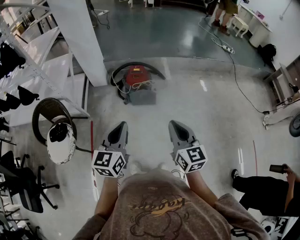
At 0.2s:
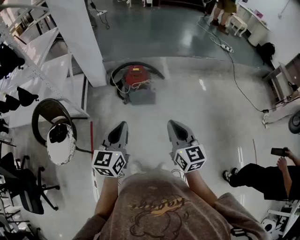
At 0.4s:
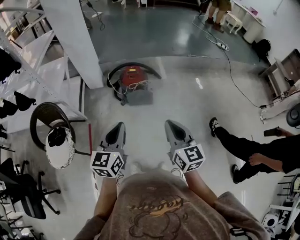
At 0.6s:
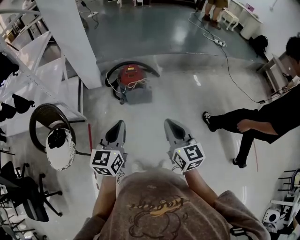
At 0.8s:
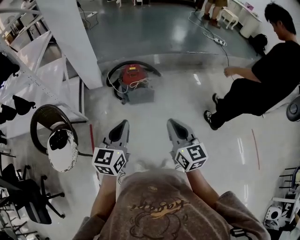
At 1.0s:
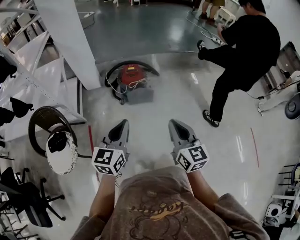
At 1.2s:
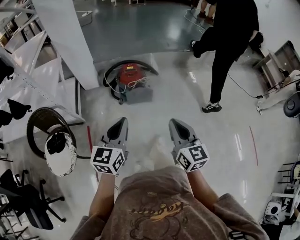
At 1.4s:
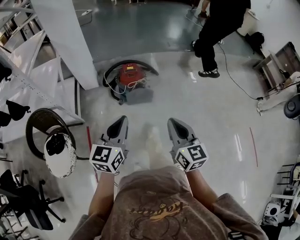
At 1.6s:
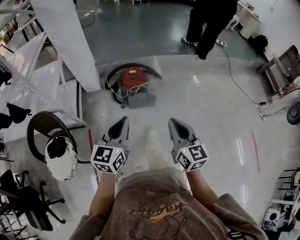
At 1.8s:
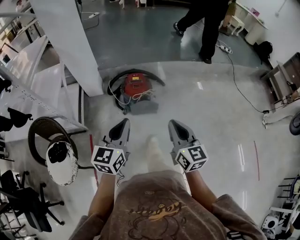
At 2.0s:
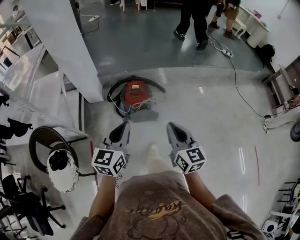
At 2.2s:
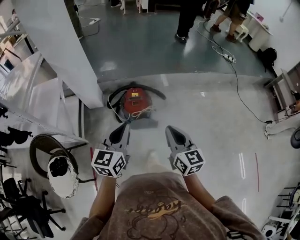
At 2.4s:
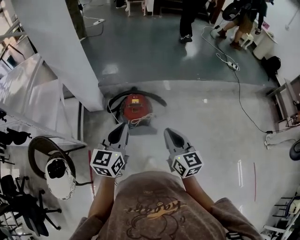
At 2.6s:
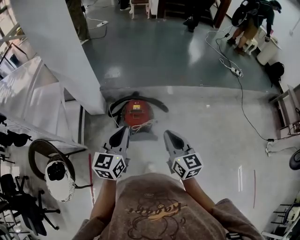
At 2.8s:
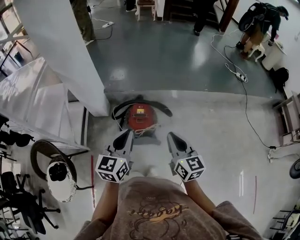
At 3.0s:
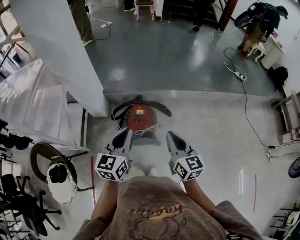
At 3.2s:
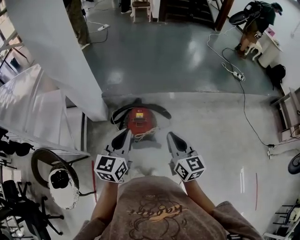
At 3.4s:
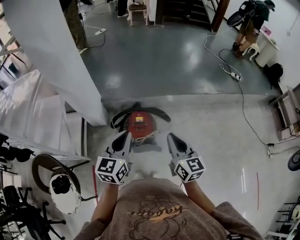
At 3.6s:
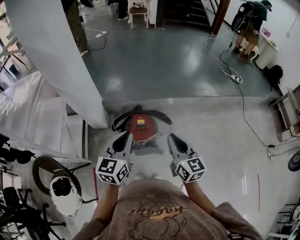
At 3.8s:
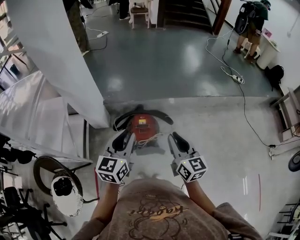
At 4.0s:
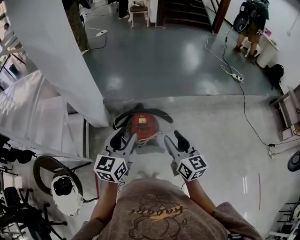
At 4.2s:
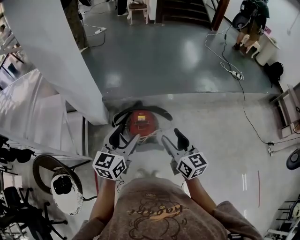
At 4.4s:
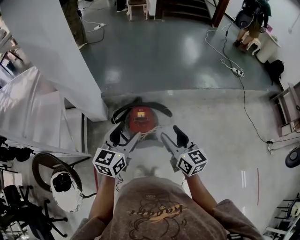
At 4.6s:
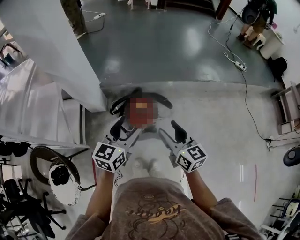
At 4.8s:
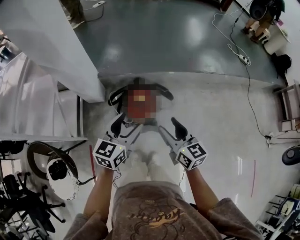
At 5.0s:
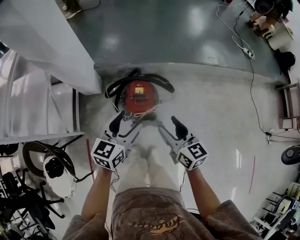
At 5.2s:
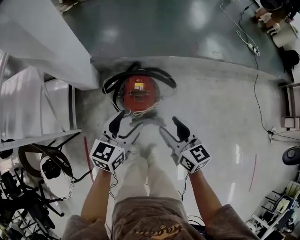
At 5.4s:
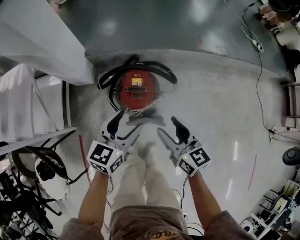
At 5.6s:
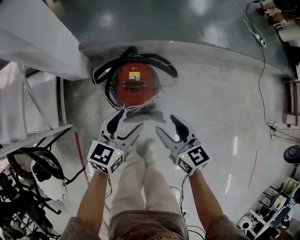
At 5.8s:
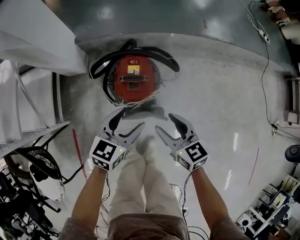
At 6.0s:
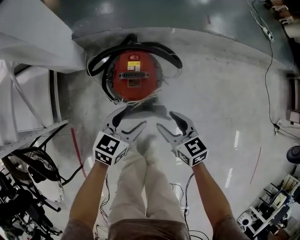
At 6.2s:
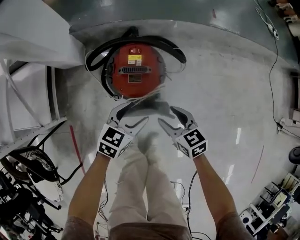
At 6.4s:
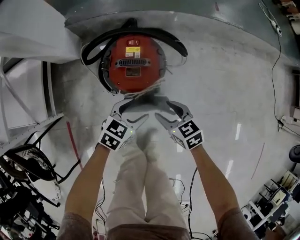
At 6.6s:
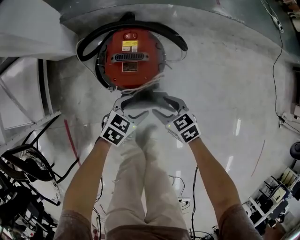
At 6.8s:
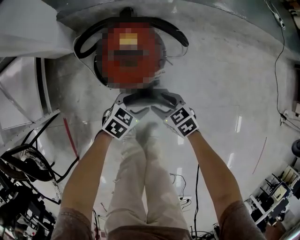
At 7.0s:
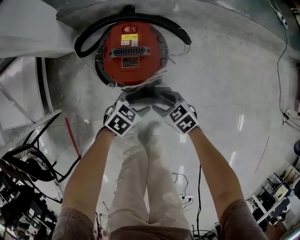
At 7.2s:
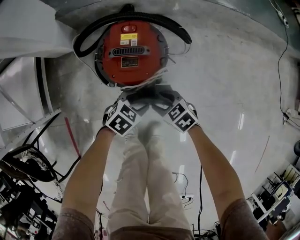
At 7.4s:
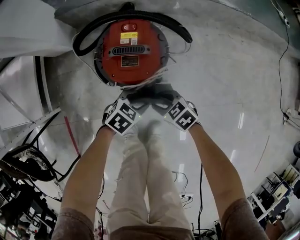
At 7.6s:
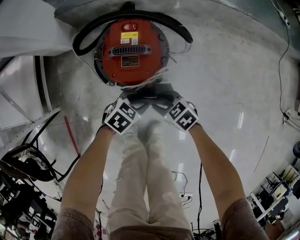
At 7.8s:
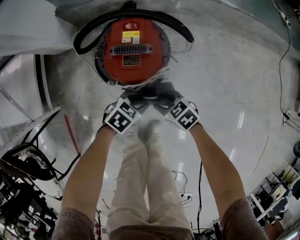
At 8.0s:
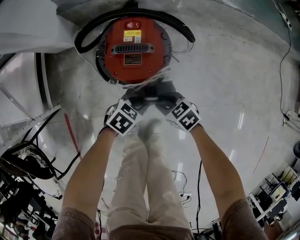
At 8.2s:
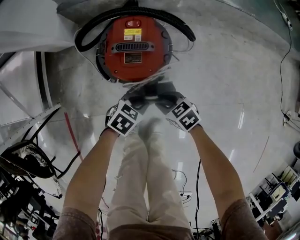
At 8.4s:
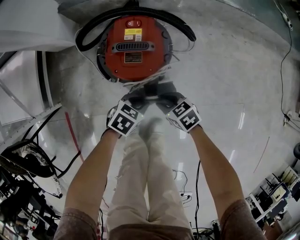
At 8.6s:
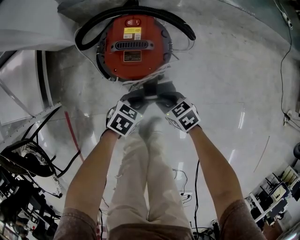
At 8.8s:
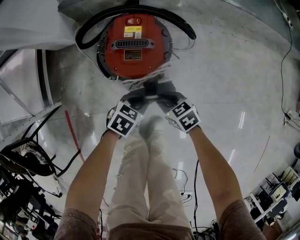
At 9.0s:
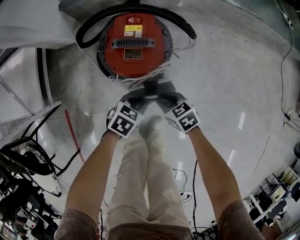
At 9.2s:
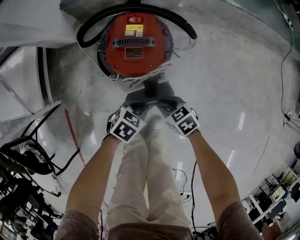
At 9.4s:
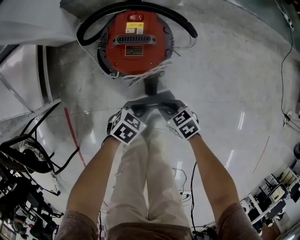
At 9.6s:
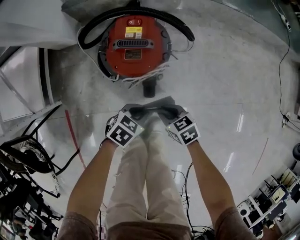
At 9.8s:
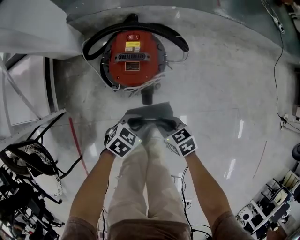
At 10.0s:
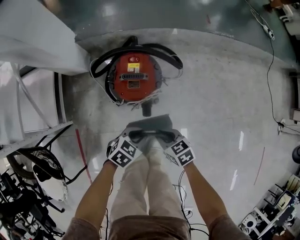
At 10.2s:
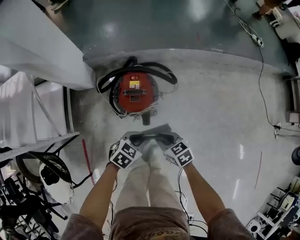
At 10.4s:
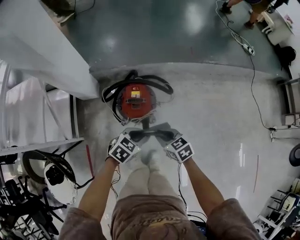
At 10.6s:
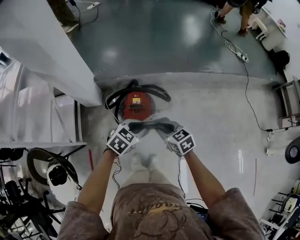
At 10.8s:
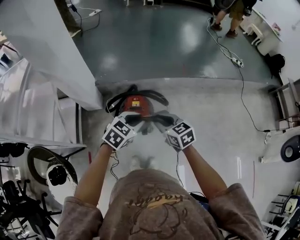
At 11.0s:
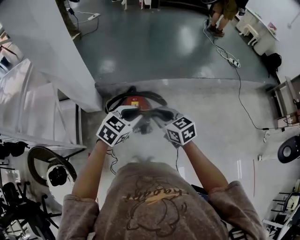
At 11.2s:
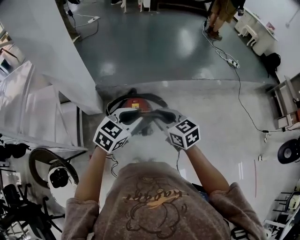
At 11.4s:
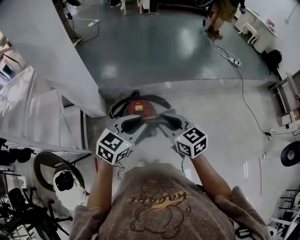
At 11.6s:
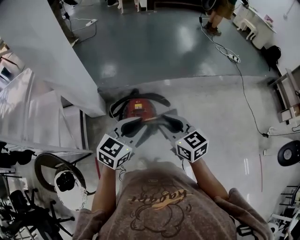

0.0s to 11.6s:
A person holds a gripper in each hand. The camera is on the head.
0.0s to 1.4s: The right gripper moves to the left, some 5 cm. Meanwhile the left gripper goes approximately 5 cm forward.
1.4s to 2.8s: The two grippers go about 30 cm forward.
2.8s to 4.4s: The left gripper heads forward, covering some 5 cm, and opens its fingers. Meanwhile the right gripper ends up approximately 5 cm from where it was, and opens.
4.4s to 5.8s: The grippers both shift downward by some 30 cm. The right gripper rotates about 20 degrees. The left gripper changes its angle by about 20 degrees.
5.8s to 7.2s: Both grippers travel together downward, about 25 cm. The left gripper rotates about 40 degrees. The right gripper turns by some 30 degrees.
7.2s to 8.8s: The left gripper closes. The right gripper closes up.
8.8s to 10.2s: Both grippers move upward, about 20 cm.
10.2s to 11.6s: Both grippers travel together upward, approximately 35 cm. The left gripper tilts its fingers some 30 degrees upward; the right gripper swivels some 30 degrees.

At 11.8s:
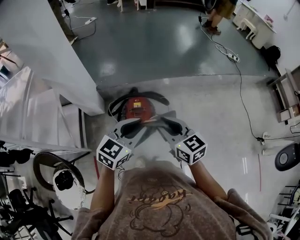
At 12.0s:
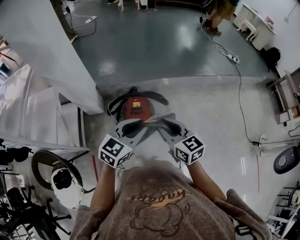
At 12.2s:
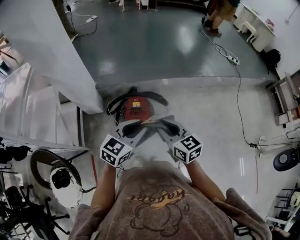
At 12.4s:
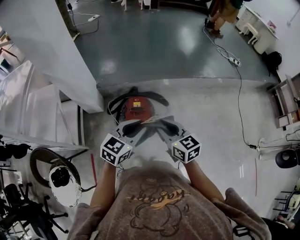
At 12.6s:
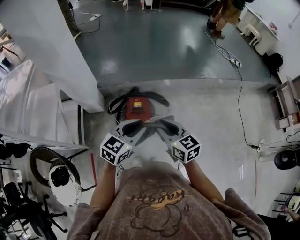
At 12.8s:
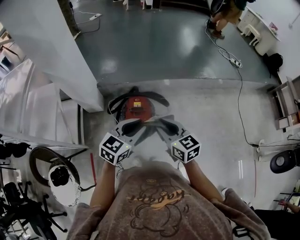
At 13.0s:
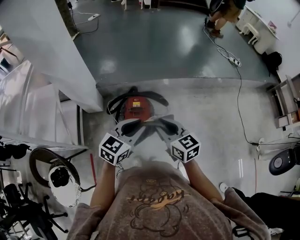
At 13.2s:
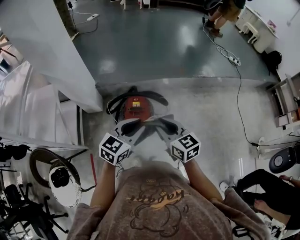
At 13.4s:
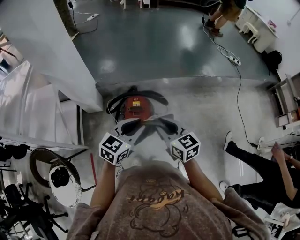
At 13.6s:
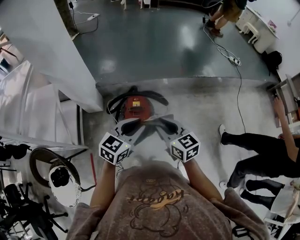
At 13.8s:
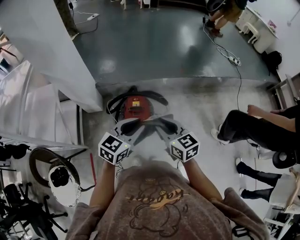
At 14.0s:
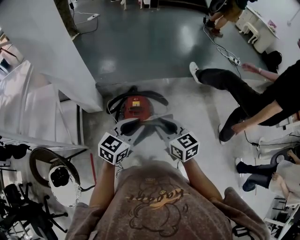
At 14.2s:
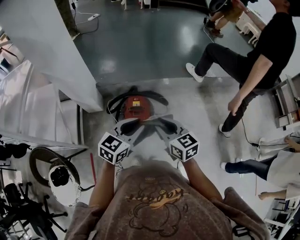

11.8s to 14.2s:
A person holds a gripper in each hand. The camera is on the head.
11.8s to 13.0s: The grippers stay close to where they were, moving slightly.
13.0s to 14.2s: Both grippers stay about where they are.

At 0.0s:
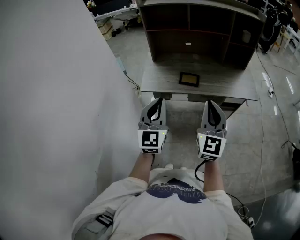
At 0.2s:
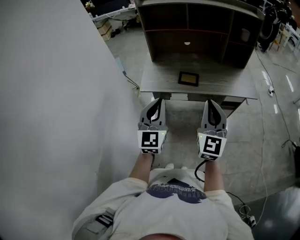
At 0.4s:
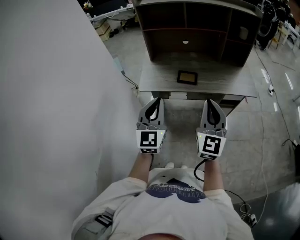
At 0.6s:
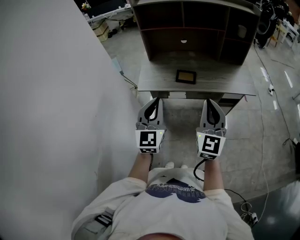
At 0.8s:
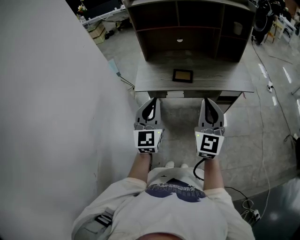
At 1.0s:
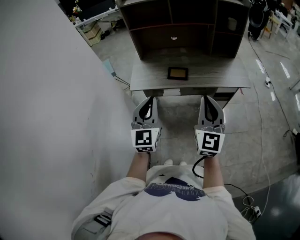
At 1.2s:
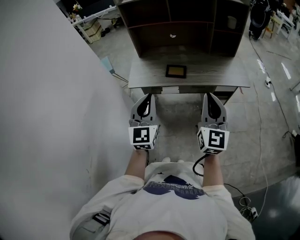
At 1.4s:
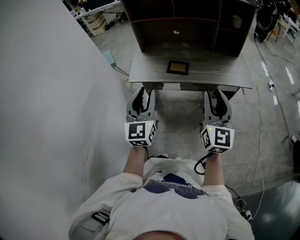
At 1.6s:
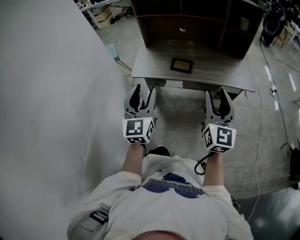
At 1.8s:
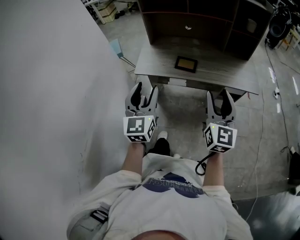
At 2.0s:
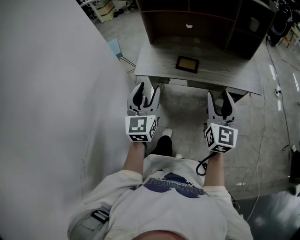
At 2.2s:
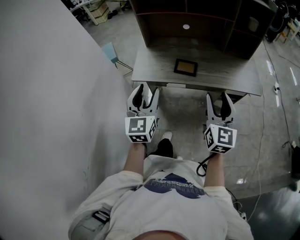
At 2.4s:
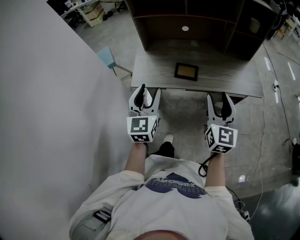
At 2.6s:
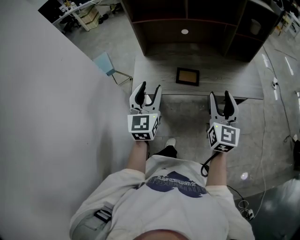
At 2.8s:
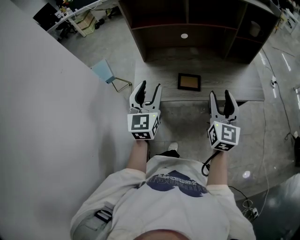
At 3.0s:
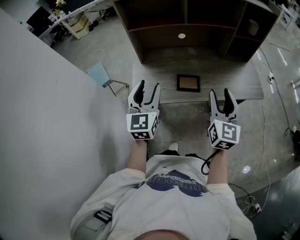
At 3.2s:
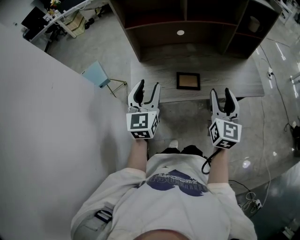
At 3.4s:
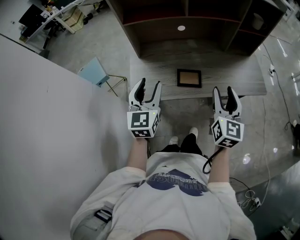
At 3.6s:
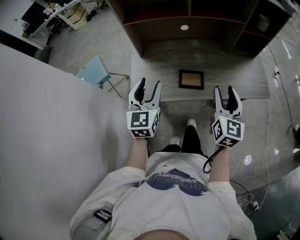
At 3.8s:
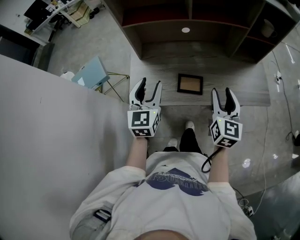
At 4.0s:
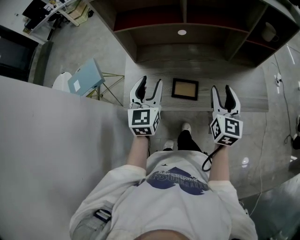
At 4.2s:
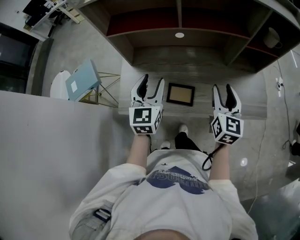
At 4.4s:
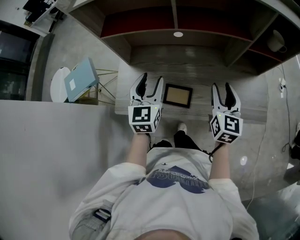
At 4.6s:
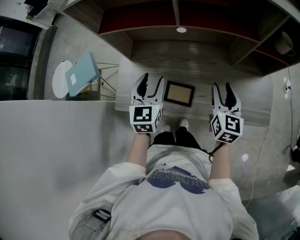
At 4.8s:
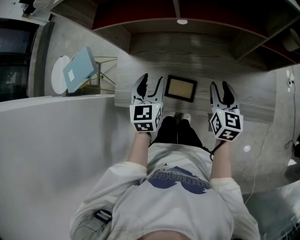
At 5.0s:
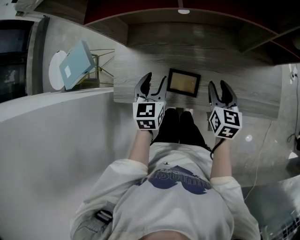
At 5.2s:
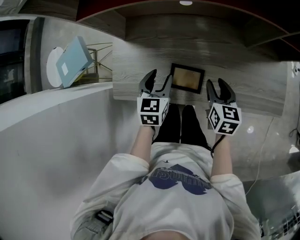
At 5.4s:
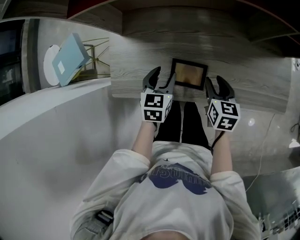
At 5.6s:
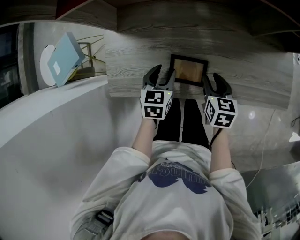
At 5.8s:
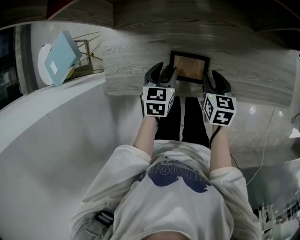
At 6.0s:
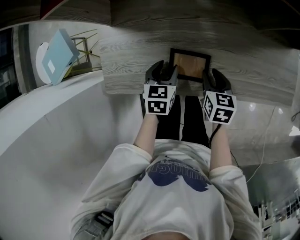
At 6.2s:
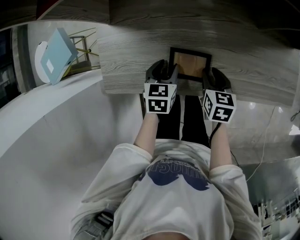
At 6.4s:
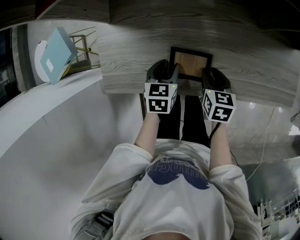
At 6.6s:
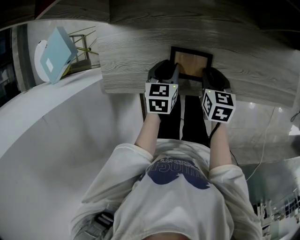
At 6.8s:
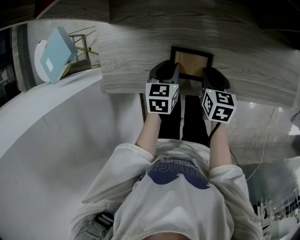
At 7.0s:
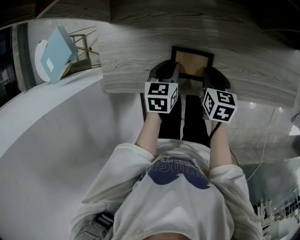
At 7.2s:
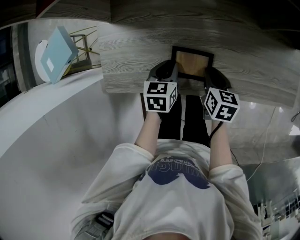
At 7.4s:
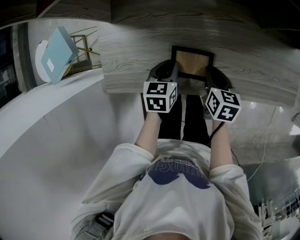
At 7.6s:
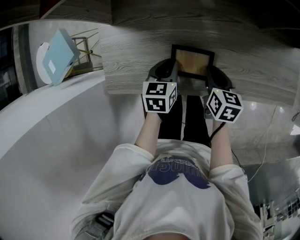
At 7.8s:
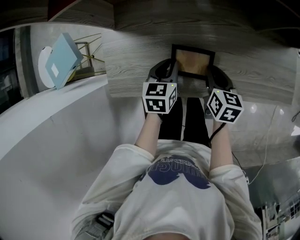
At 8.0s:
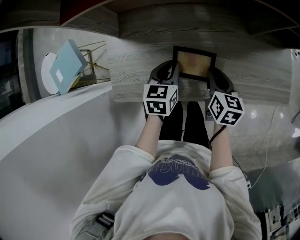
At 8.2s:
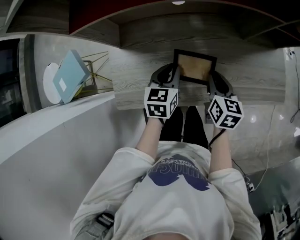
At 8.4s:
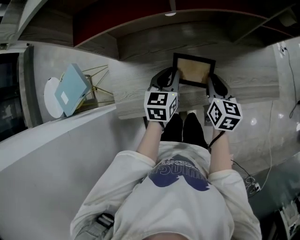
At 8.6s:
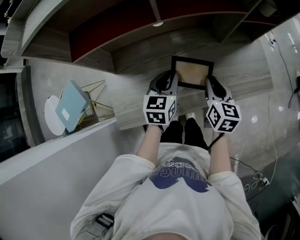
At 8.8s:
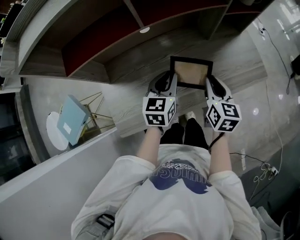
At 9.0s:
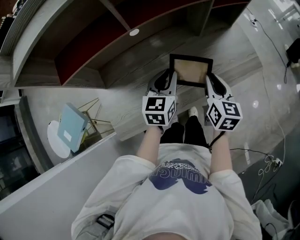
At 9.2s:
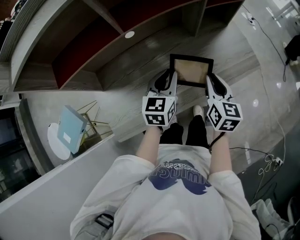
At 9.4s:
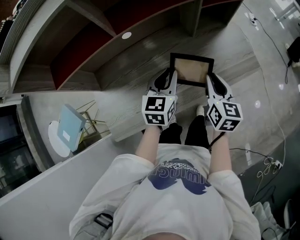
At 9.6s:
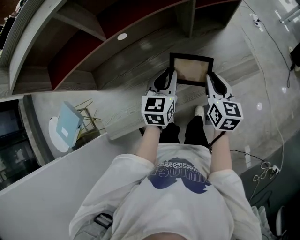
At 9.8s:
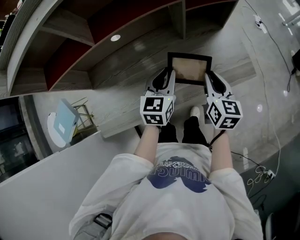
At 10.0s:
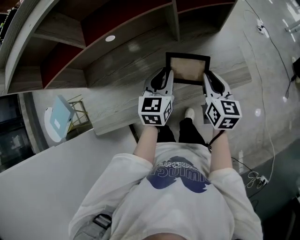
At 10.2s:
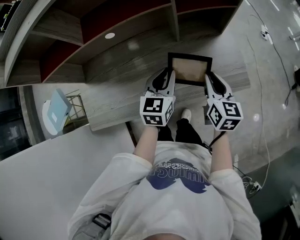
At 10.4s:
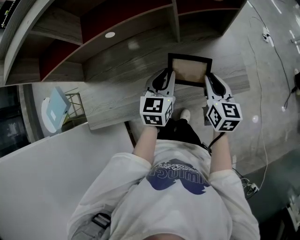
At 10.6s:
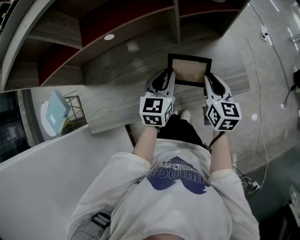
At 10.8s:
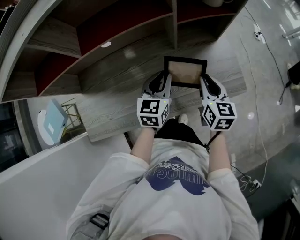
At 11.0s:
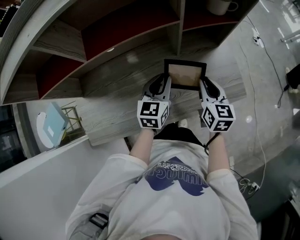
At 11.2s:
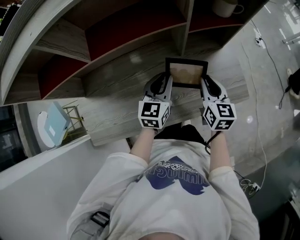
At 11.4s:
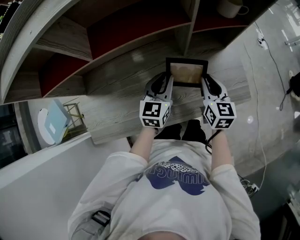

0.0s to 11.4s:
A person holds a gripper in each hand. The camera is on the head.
0.0s to 1.4s: The right gripper goes roughly 10 cm to the right, and opens up. Meanwhile the left gripper opens.
1.4s to 2.8s: The grippers both shift forward by roughly 25 cm. The left gripper opens. The right gripper opens its fingers.
2.8s to 4.2s: The two grippers go approximately 20 cm forward.
4.2s to 5.6s: The grippers both shift downward by roughly 25 cm. The right gripper tips its fingers downward by roughly 30 degrees; the left gripper angles its fingers downward, by some 30 degrees.
5.6s to 7.2s: The left gripper changes place by approximately 5 cm, and closes, while the right gripper changes place by roughly 5 cm.
7.2s to 8.6s: The two grippers go roughly 20 cm upward. The left gripper swivels approximately 30 degrees. Meanwhile the right gripper turns by approximately 30 degrees.
8.6s to 10.0s: The two grippers go roughly 20 cm to the right.
10.0s to 11.4s: Both grippers move forward, approximately 5 cm.
